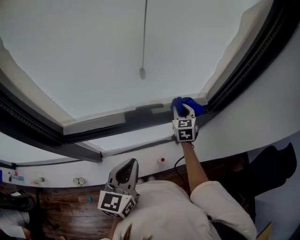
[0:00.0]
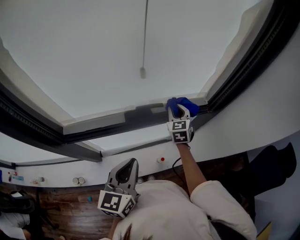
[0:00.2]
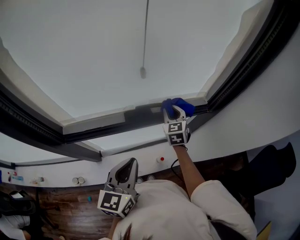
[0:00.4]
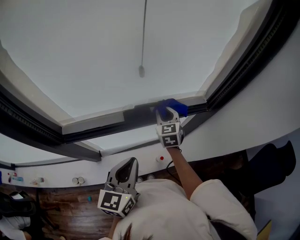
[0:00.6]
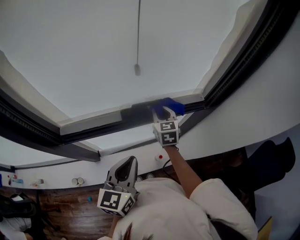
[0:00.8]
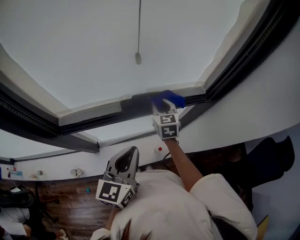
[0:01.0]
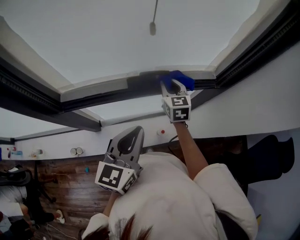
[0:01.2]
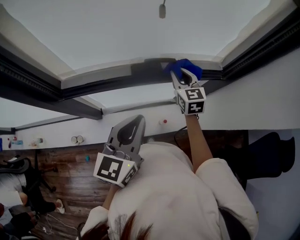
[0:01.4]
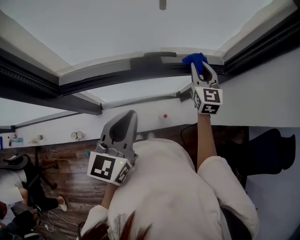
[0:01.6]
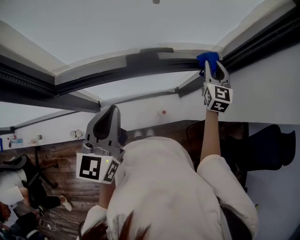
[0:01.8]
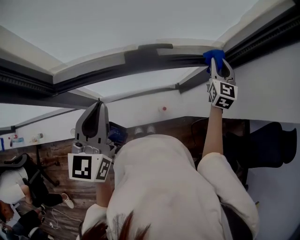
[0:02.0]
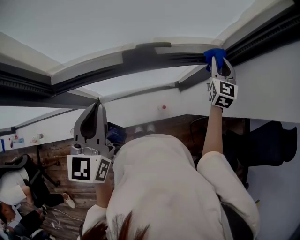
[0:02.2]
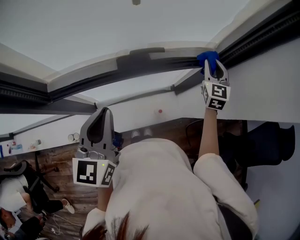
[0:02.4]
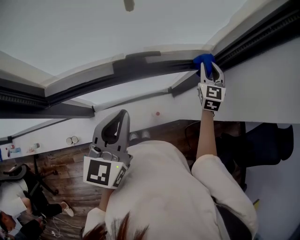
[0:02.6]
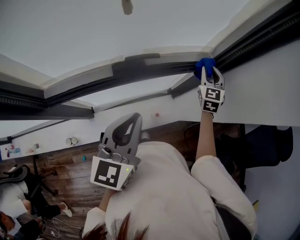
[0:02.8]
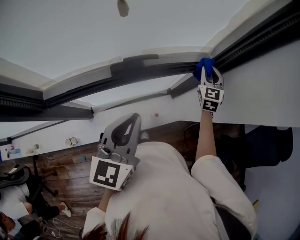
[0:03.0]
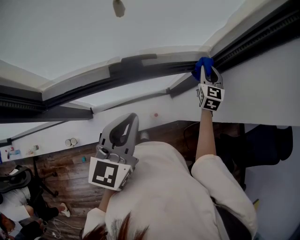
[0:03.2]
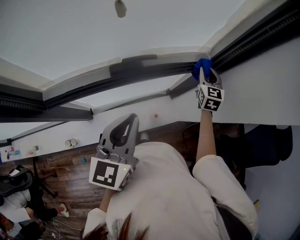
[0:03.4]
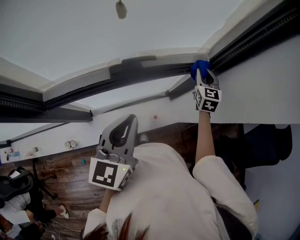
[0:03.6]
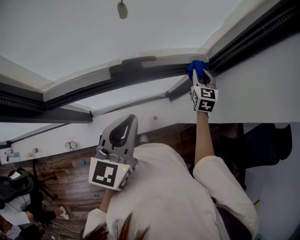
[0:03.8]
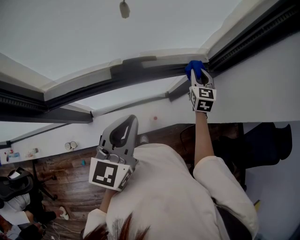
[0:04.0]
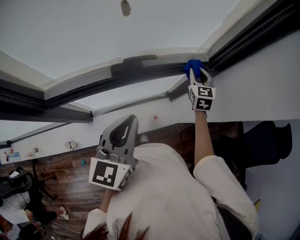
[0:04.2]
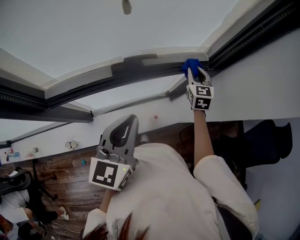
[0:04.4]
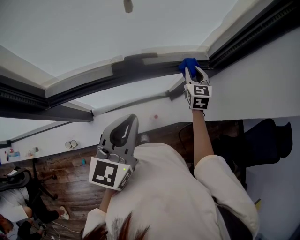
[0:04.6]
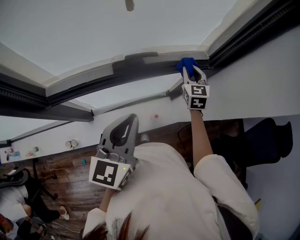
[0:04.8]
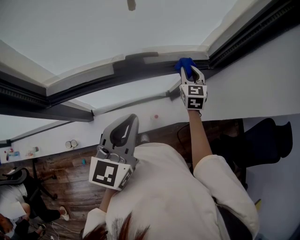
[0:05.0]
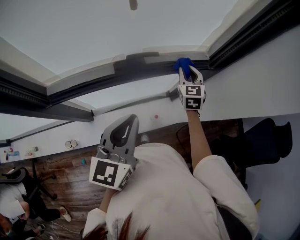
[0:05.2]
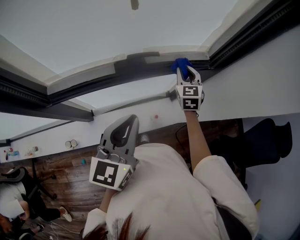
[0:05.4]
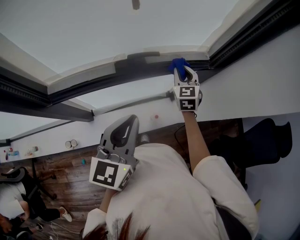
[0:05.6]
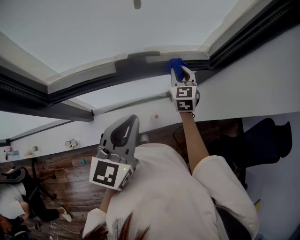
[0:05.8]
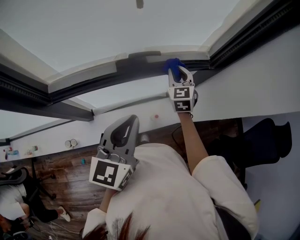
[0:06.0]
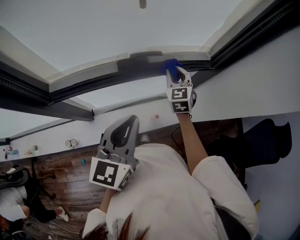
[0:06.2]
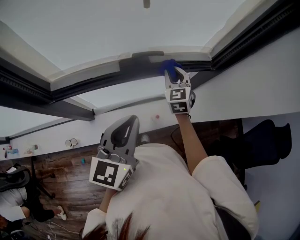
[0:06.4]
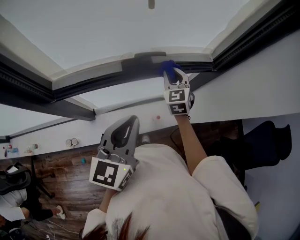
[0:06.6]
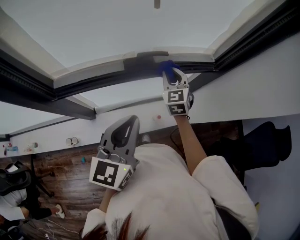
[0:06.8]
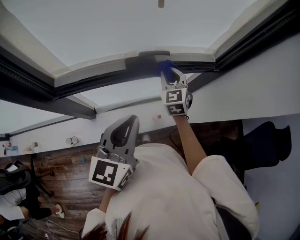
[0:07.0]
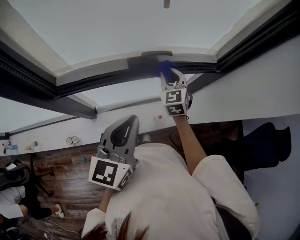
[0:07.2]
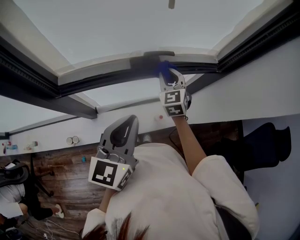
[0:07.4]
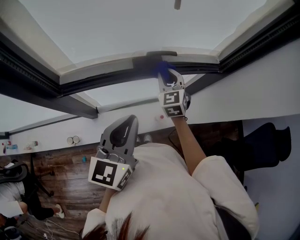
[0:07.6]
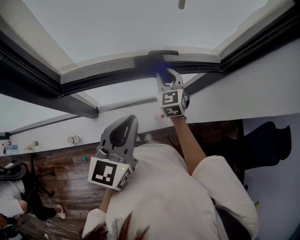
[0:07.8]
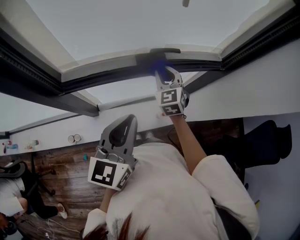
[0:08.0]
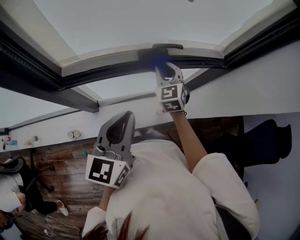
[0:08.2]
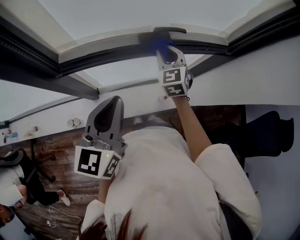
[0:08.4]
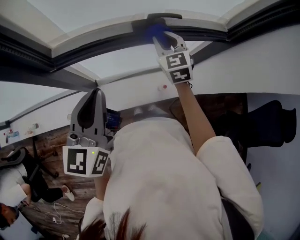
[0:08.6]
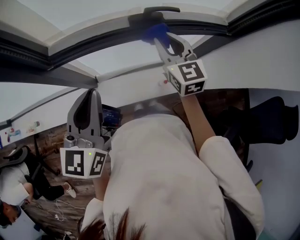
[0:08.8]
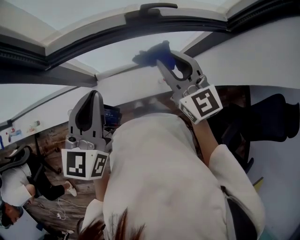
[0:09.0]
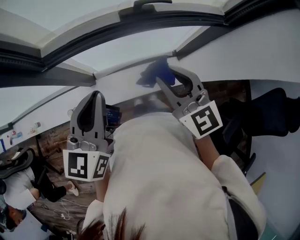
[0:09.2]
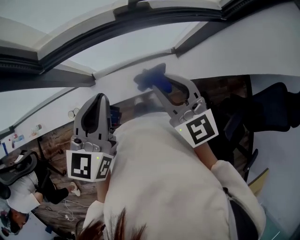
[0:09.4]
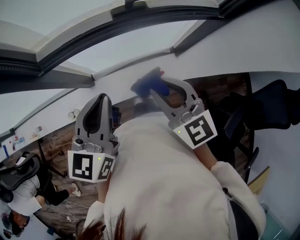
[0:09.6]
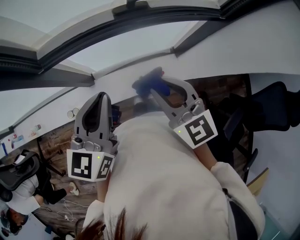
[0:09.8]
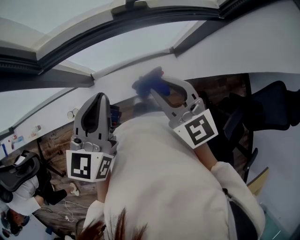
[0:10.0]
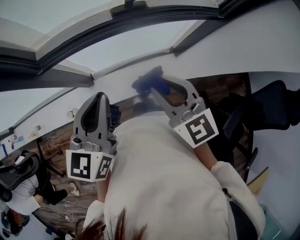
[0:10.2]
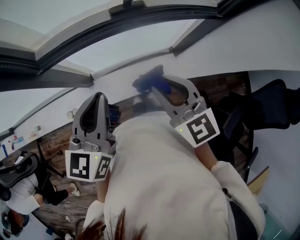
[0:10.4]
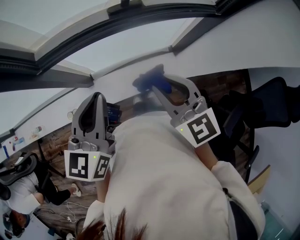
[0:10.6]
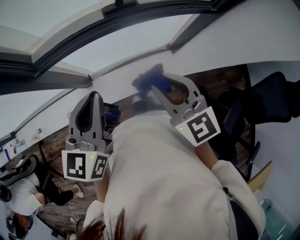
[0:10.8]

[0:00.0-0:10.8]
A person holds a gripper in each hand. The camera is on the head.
0:00.0 to 0:01.6: The right gripper travels to the left and back again, some 10 cm each way.
0:01.6 to 0:03.0: The right gripper is displaced to the right by about 15 cm, and turns by approximately 20 degrees; the left gripper shifts about 5 cm to the right.
0:03.0 to 0:04.6: The right gripper travels to the left by approximately 5 cm.
0:04.6 to 0:06.2: The right gripper goes some 10 cm to the left.
0:06.2 to 0:07.8: The left gripper heads to the left, covering some 5 cm. The right gripper moves to the left, roughly 10 cm.
0:07.8 to 0:09.2: The right gripper moves backward and upward, roughly 20 cm, and swivels some 30 degrees, while the left gripper shifts approximately 5 cm to the left.
0:09.2 to 0:10.8: The right gripper is displaced backward by some 5 cm.

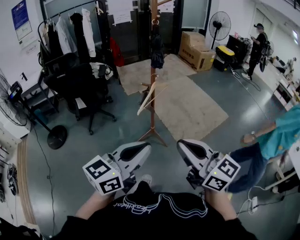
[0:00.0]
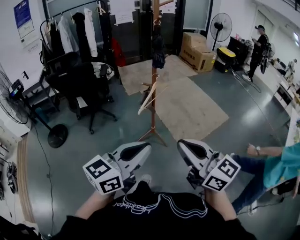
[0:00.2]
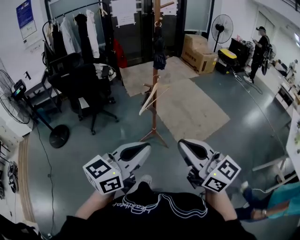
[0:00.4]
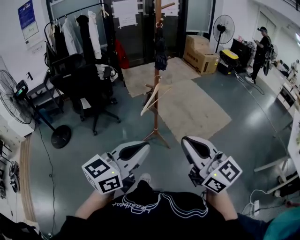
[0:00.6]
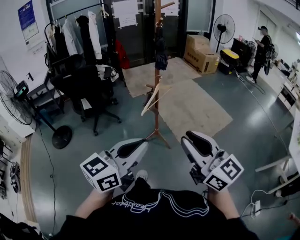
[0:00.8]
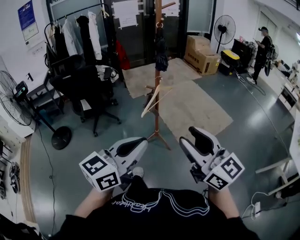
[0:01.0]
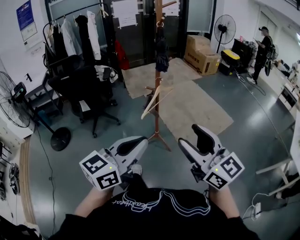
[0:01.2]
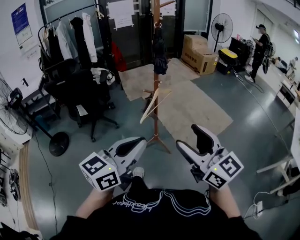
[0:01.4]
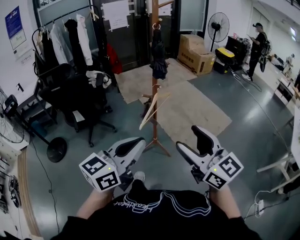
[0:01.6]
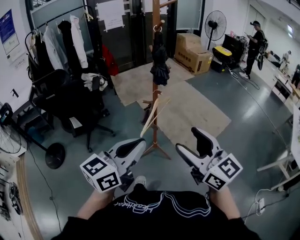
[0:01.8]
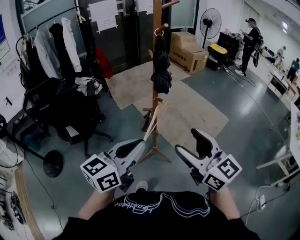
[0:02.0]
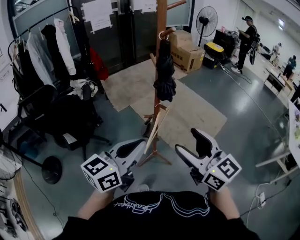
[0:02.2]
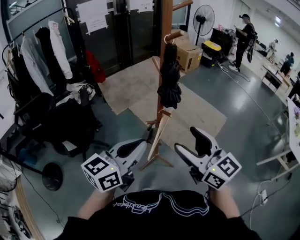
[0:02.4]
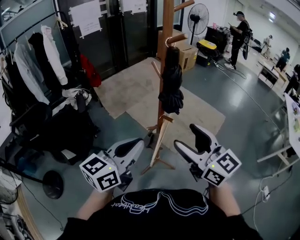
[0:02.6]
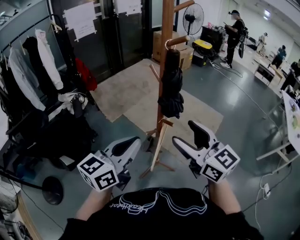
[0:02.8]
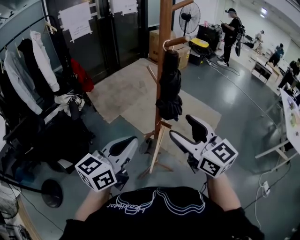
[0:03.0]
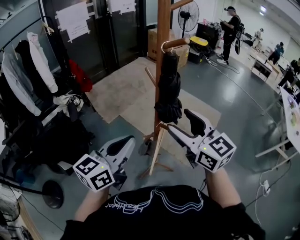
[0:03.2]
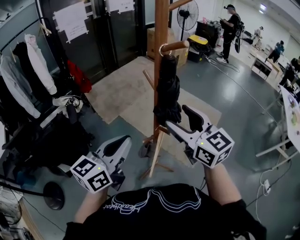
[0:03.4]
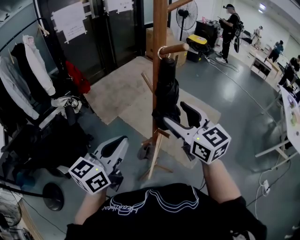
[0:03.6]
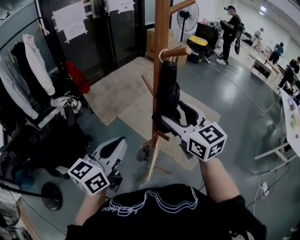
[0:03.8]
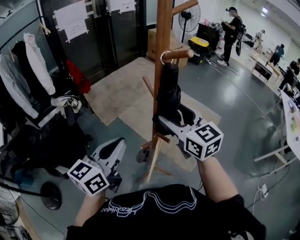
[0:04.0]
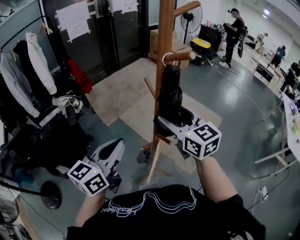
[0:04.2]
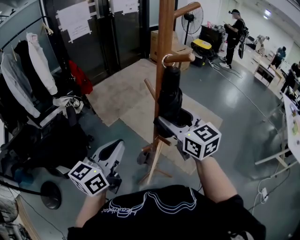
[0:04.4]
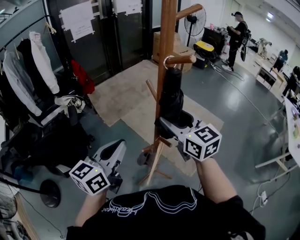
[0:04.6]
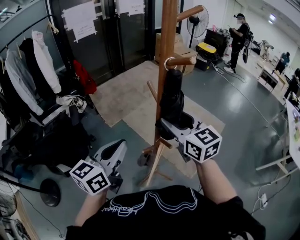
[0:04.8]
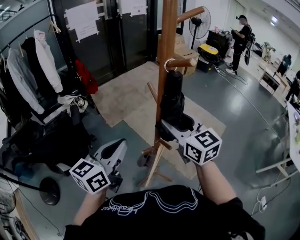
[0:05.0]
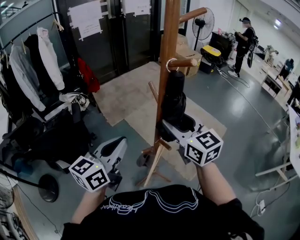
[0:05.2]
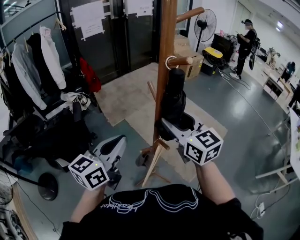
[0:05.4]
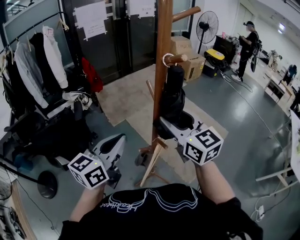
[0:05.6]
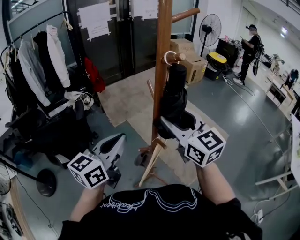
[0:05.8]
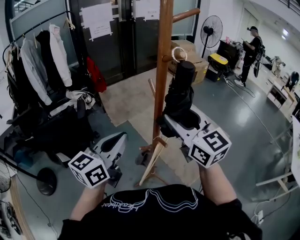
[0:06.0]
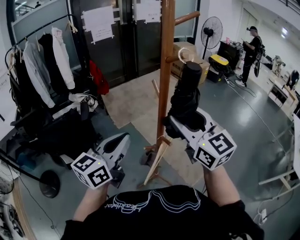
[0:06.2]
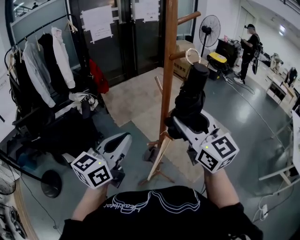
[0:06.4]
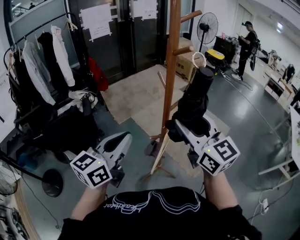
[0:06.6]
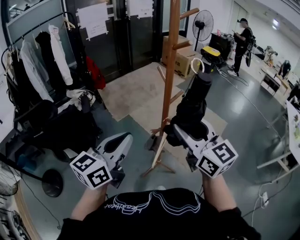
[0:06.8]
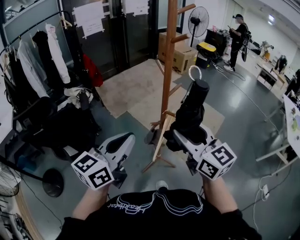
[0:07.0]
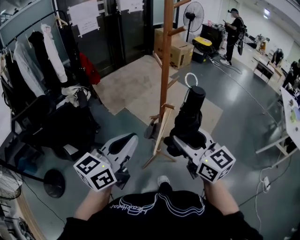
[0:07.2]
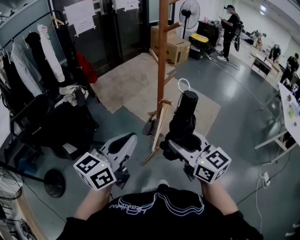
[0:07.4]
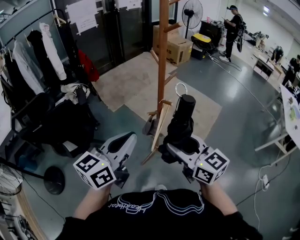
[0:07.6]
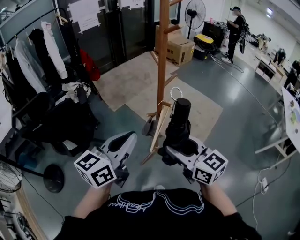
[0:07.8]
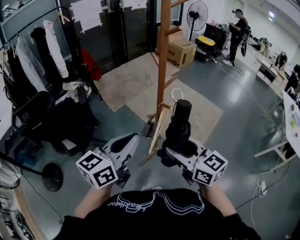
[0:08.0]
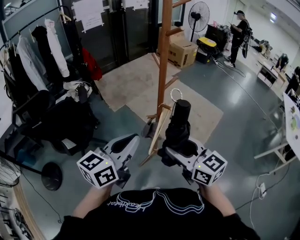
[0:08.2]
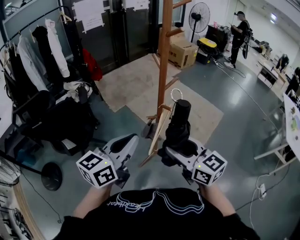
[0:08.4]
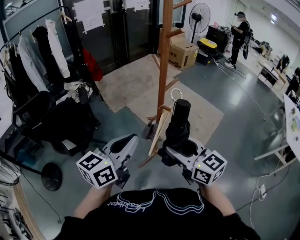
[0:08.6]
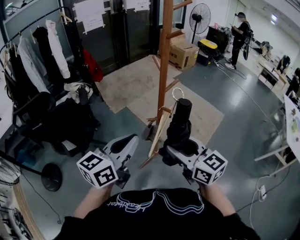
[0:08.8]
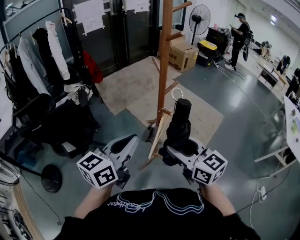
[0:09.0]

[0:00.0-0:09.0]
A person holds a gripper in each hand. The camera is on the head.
0:00.0 to 0:01.6: Both grippers move forward, roughly 10 cm. The right gripper opens up.
0:01.6 to 0:03.0: Both grippers travel together forward and to the left, approximately 35 cm.
0:03.0 to 0:04.4: The right gripper travels forward by approximately 15 cm. Meanwhile the left gripper is displaced forward by approximately 5 cm.
0:04.4 to 0:06.0: The right gripper heads upward, covering some 5 cm.
0:06.0 to 0:07.6: The right gripper heads backward and downward, covering approximately 25 cm. The left gripper shifts approximately 15 cm backward.
0:07.6 to 0:09.0: The grippers stay close to where they were, moving slightly.

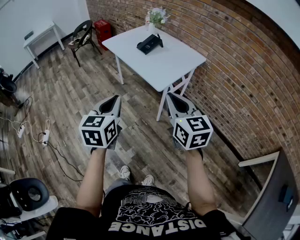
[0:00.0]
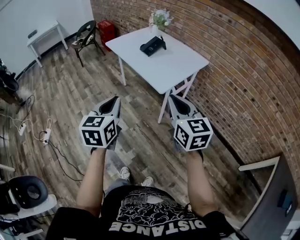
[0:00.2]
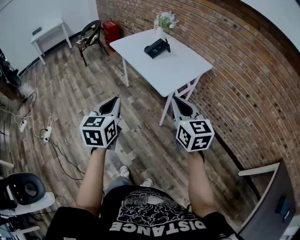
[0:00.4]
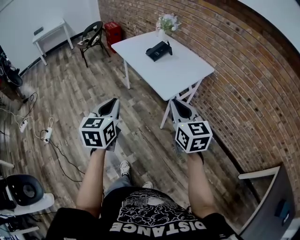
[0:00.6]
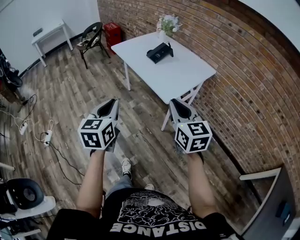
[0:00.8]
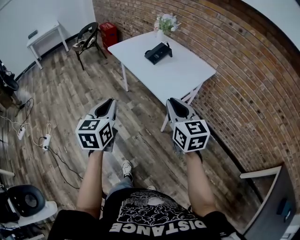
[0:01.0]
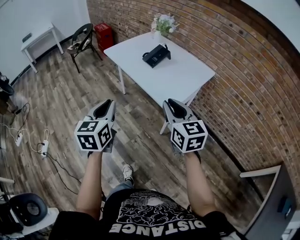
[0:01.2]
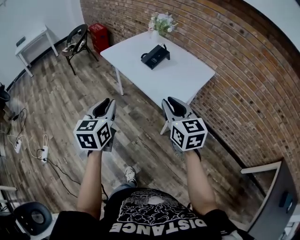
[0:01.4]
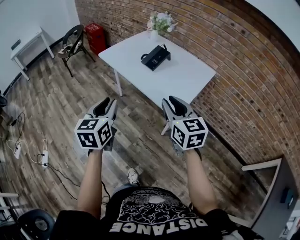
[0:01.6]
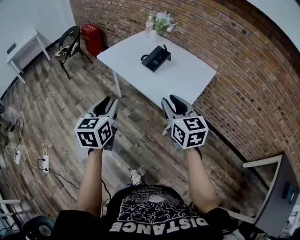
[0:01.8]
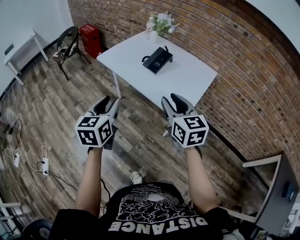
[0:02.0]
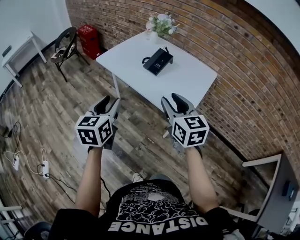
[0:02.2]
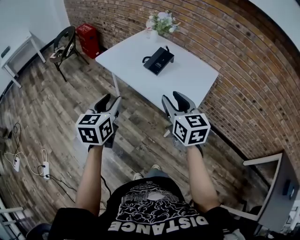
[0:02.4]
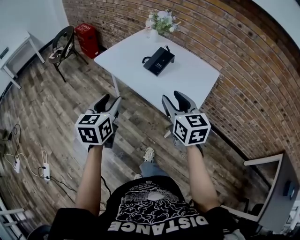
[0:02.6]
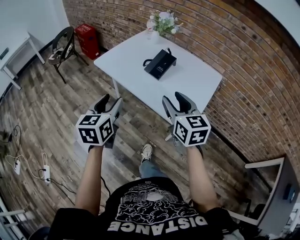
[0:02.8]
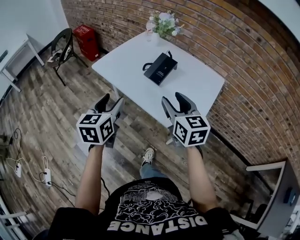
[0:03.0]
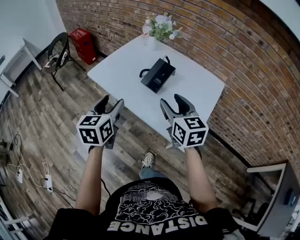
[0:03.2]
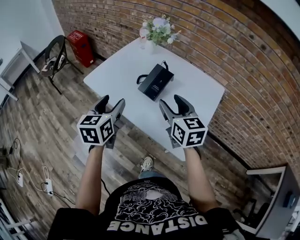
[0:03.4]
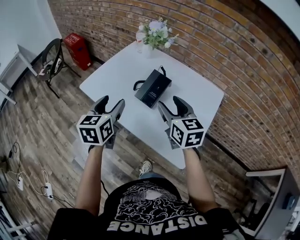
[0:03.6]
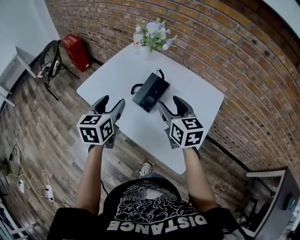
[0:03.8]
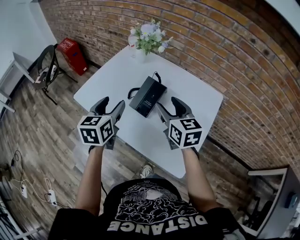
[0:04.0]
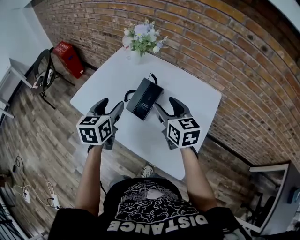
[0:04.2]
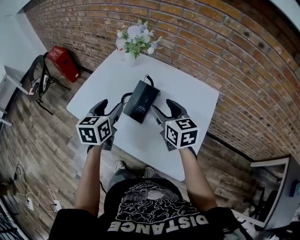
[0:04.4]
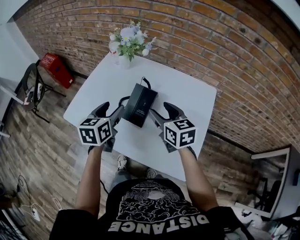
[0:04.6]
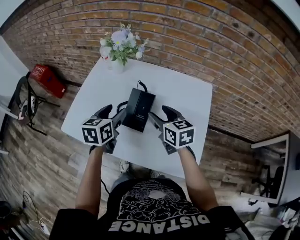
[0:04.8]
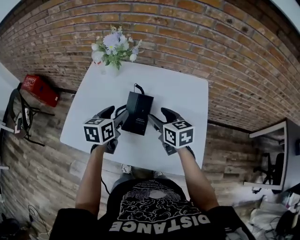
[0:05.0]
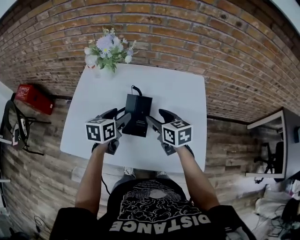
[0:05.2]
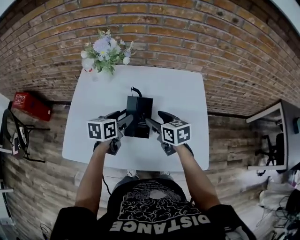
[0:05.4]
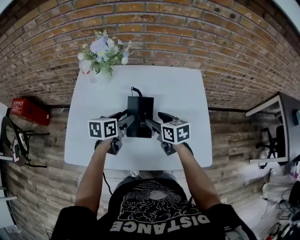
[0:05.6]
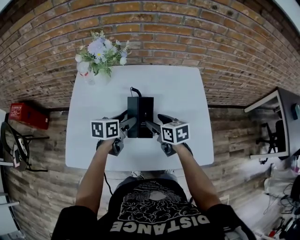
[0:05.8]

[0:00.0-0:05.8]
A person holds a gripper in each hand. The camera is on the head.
0:00.0 to 0:01.4: The right gripper heads forward, covering approximately 20 cm; the left gripper goes roughly 20 cm forward and to the left.
0:01.4 to 0:02.8: The two grippers go some 20 cm forward. The left gripper opens its fingers; the right gripper opens.
0:02.8 to 0:04.4: Both grippers travel together forward, roughly 30 cm.
0:04.4 to 0:05.8: Both grippers move downward, roughly 15 cm. The right gripper rotates approximately 30 degrees. The left gripper changes its angle by about 50 degrees.
